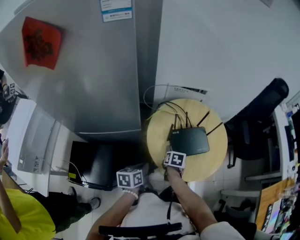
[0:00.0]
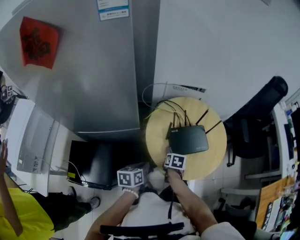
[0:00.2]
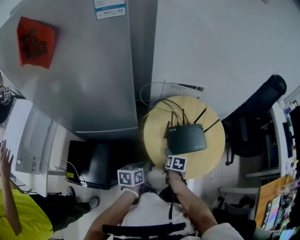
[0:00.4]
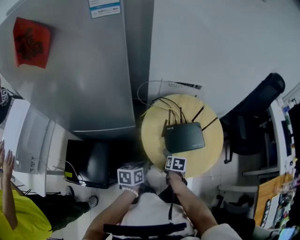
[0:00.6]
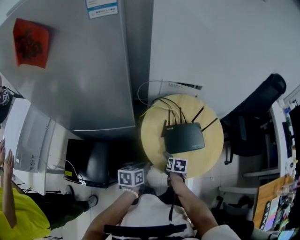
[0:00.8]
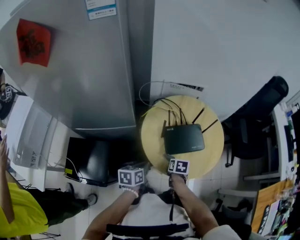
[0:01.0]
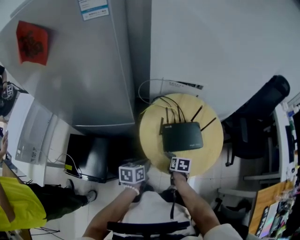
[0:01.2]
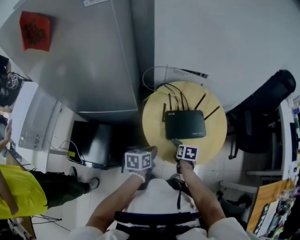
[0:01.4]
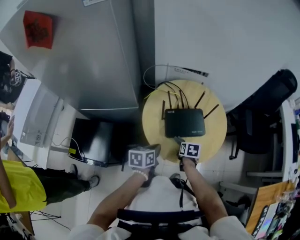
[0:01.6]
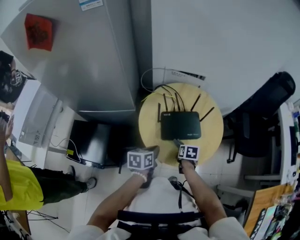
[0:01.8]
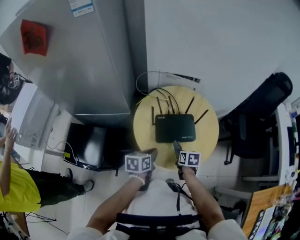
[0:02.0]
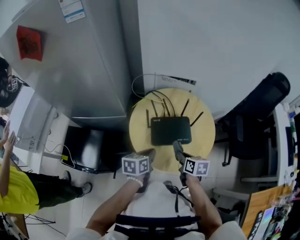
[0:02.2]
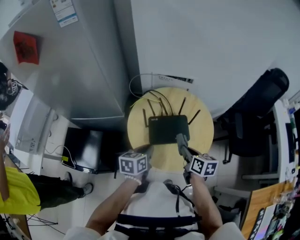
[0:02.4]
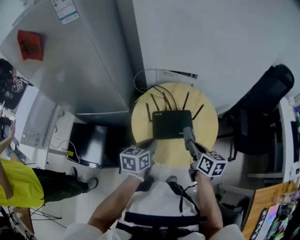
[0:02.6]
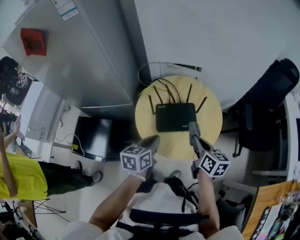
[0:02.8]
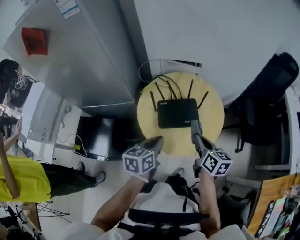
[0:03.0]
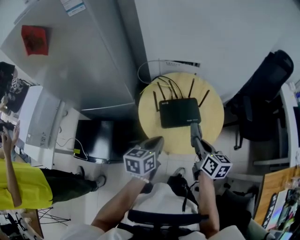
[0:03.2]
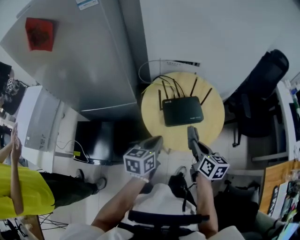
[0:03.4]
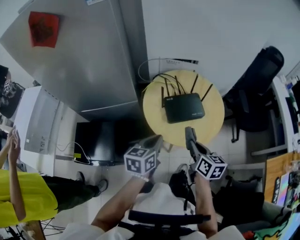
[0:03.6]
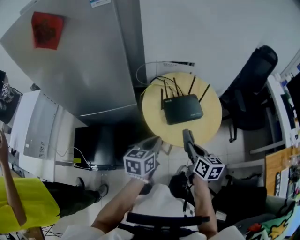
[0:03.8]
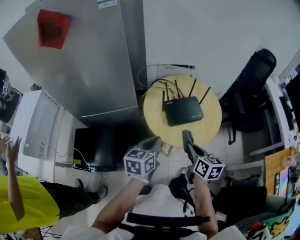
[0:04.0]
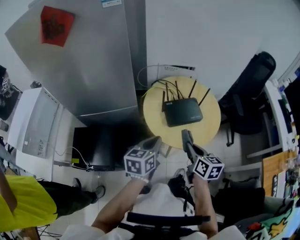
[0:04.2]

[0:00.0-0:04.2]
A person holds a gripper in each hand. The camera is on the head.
0:00.0 to 0:01.4: Both grippers move to the right, approximately 10 cm.
0:01.4 to 0:02.8: The left gripper shifts some 15 cm upward and to the right, while the right gripper travels upward and to the right by about 25 cm, and tilts its fingers approximately 40 degrees upward.
0:02.8 to 0:04.2: The right gripper travels backward and to the left by about 20 cm; the left gripper heads to the left and backward, covering approximately 15 cm.

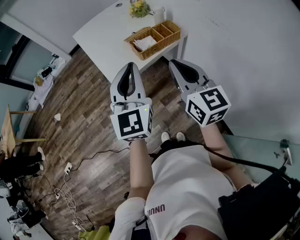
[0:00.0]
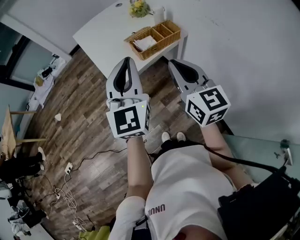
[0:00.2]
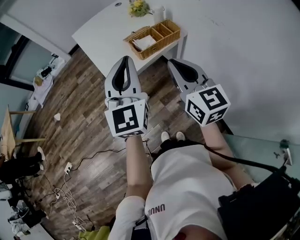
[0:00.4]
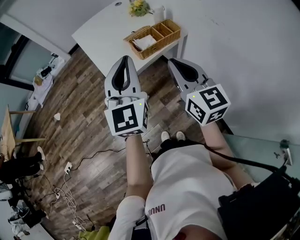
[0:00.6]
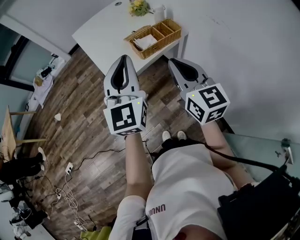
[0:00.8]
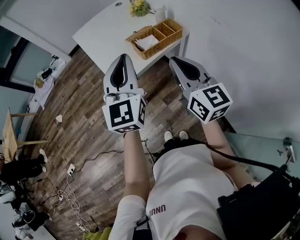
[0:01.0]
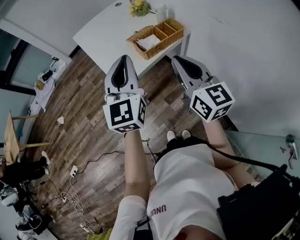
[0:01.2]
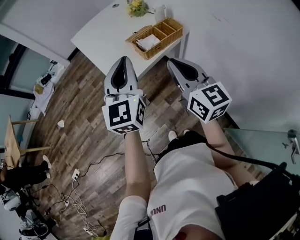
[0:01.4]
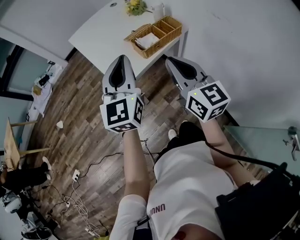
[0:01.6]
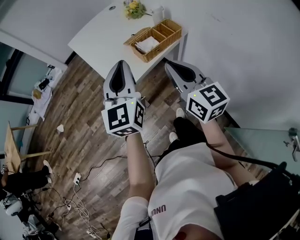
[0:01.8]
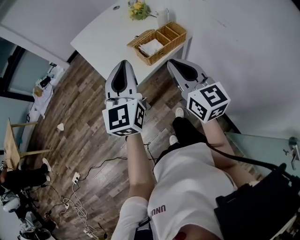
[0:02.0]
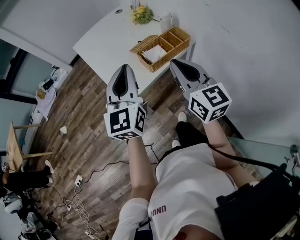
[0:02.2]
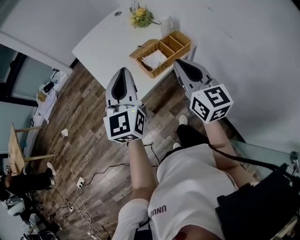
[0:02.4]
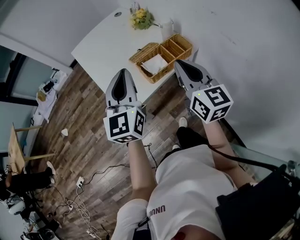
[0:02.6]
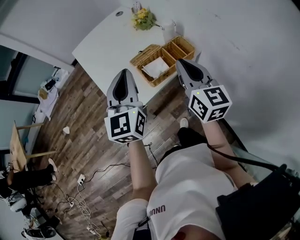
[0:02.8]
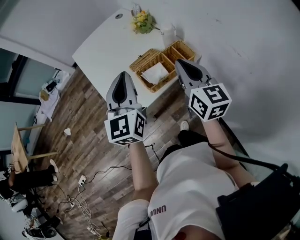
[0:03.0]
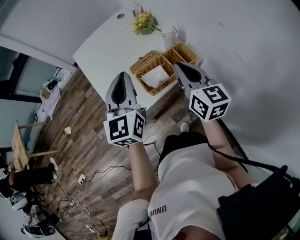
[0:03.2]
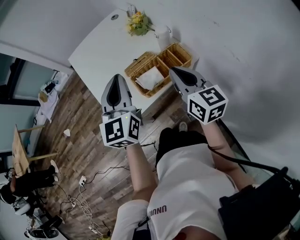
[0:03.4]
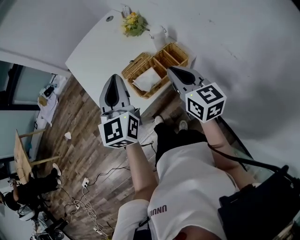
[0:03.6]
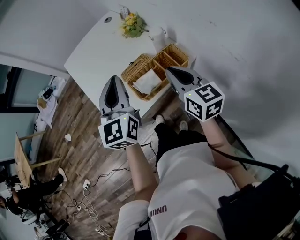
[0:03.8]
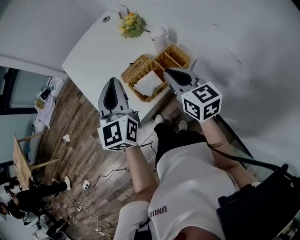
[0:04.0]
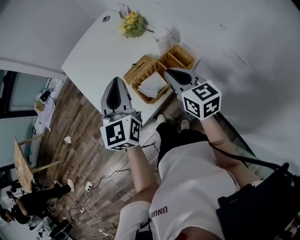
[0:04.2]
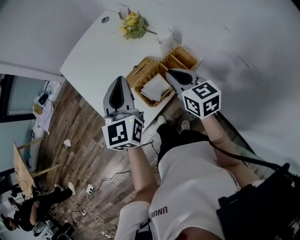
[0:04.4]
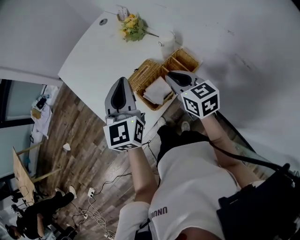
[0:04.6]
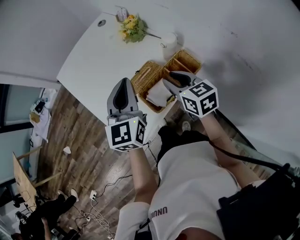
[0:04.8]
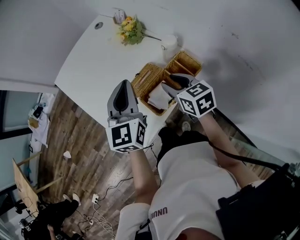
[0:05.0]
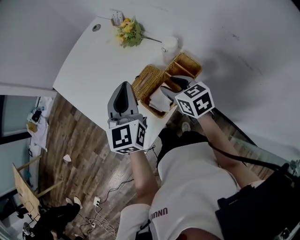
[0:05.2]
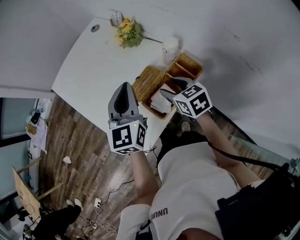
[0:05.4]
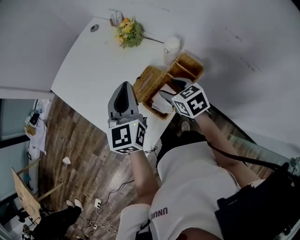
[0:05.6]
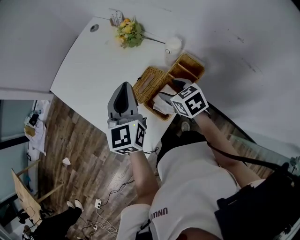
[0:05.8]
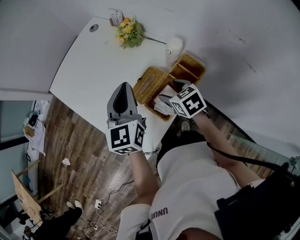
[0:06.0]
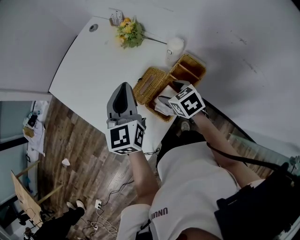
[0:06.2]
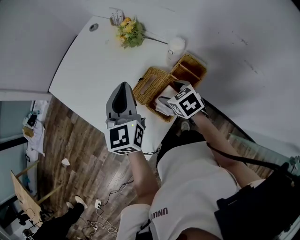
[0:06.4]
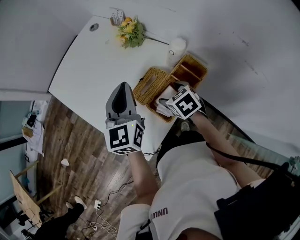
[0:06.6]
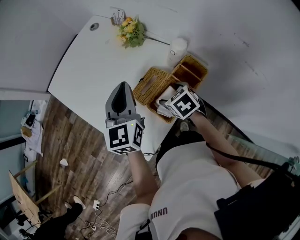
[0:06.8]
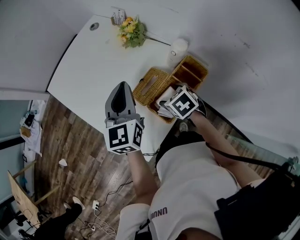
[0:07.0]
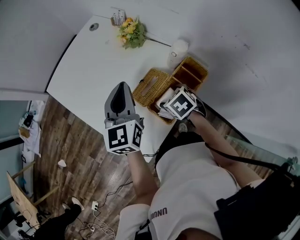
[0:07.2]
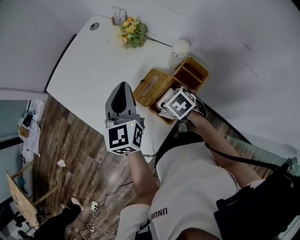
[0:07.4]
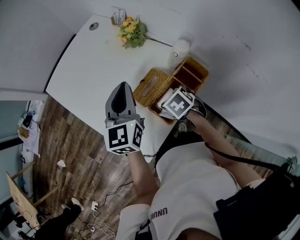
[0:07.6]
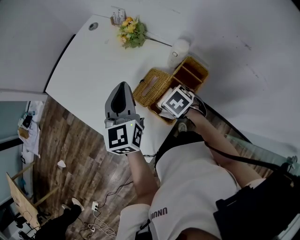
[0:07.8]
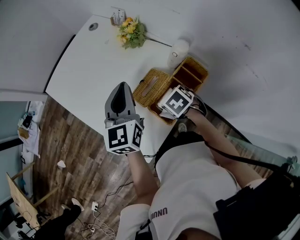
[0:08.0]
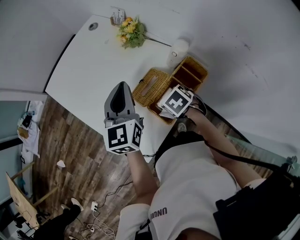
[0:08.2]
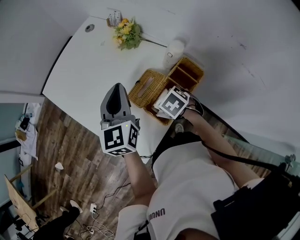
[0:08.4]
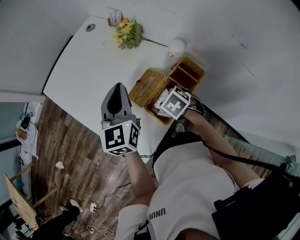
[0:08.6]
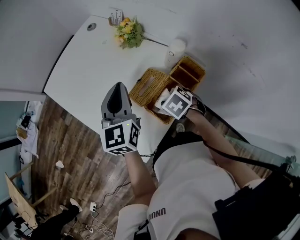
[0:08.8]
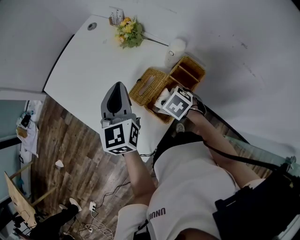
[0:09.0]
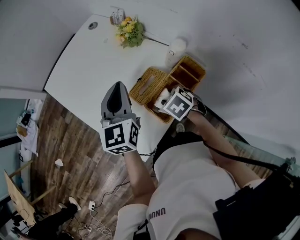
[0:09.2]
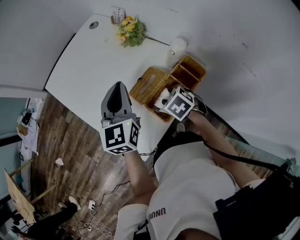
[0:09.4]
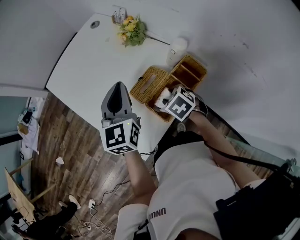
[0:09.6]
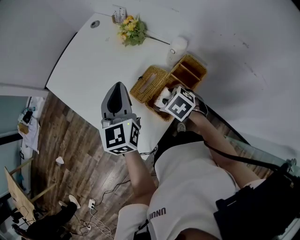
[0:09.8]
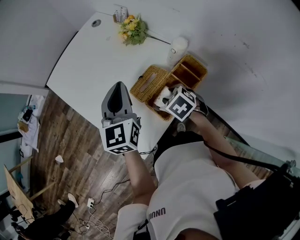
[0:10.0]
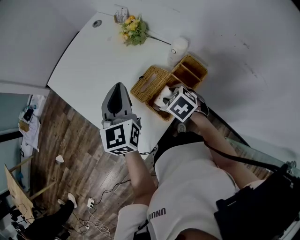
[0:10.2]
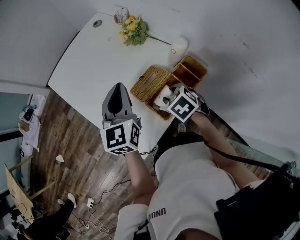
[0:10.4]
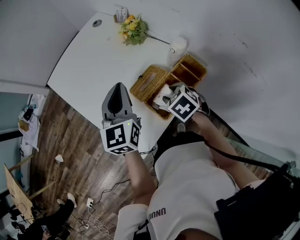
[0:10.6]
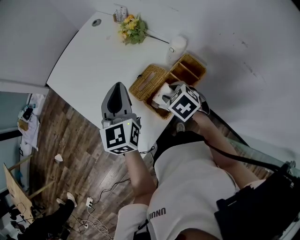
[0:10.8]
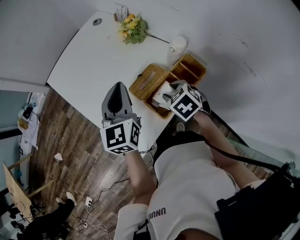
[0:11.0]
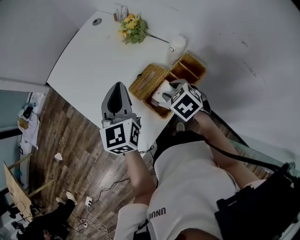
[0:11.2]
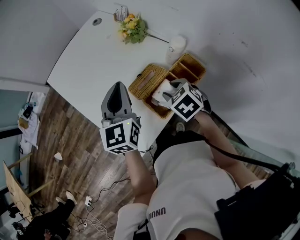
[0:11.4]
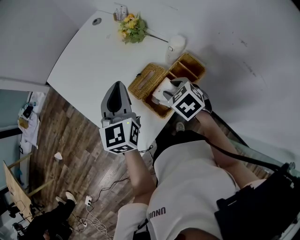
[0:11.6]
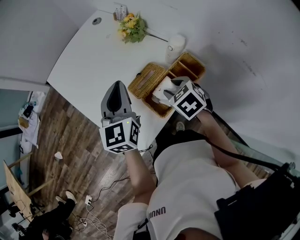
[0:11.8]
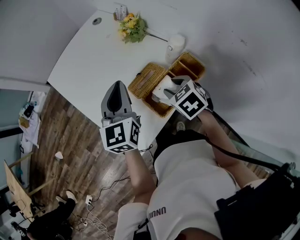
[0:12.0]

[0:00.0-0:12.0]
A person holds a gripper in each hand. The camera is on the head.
0:00.0 to 0:01.6: The left gripper moves forward, about 5 cm.
0:01.6 to 0:03.0: The left gripper shifts some 15 cm forward; the right gripper is displaced forward and to the right by about 20 cm.
0:03.0 to 0:04.4: The right gripper shifts some 10 cm downward and forward. The left gripper goes approximately 10 cm forward.
0:04.4 to 0:06.0: The left gripper shifts some 10 cm forward. Meanwhile the right gripper goes approximately 10 cm downward, changes its angle by roughly 30 degrees, and opens.
0:06.0 to 0:07.6: The right gripper moves downward, approximately 5 cm, and swivels roughly 30 degrees.
0:07.6 to 0:09.0: The right gripper closes.
0:09.0 to 0:10.4: The grippers make only small movements.
0:10.4 to 0:12.0: There are only small adjustments of the grippers.

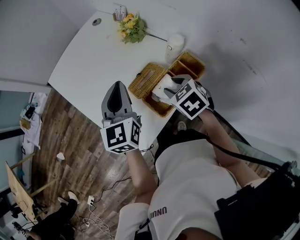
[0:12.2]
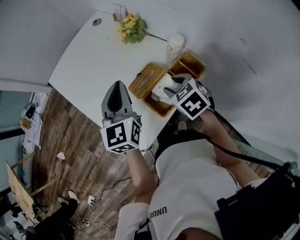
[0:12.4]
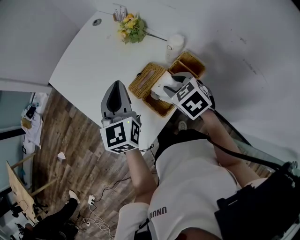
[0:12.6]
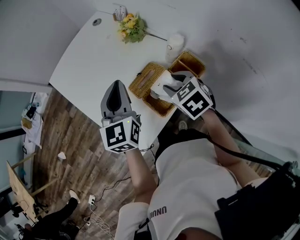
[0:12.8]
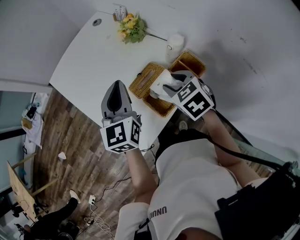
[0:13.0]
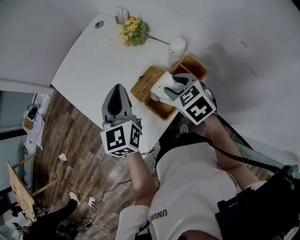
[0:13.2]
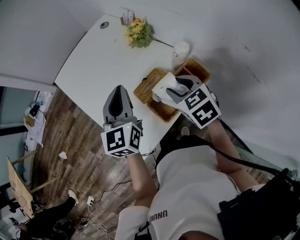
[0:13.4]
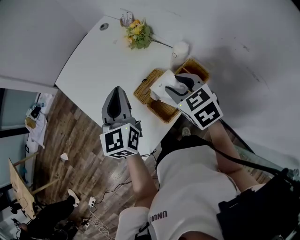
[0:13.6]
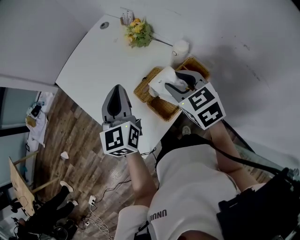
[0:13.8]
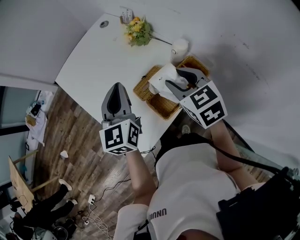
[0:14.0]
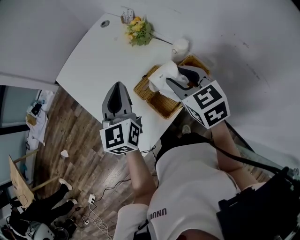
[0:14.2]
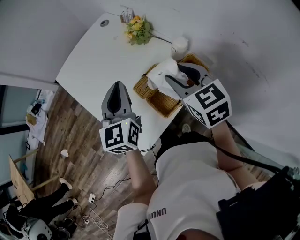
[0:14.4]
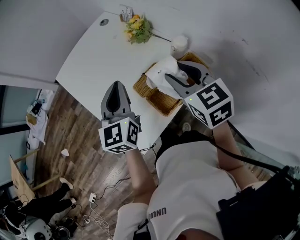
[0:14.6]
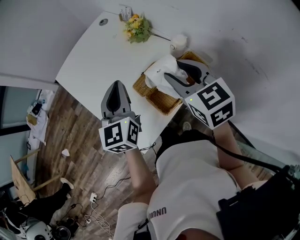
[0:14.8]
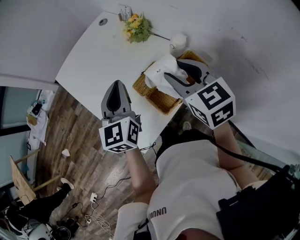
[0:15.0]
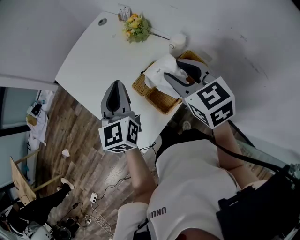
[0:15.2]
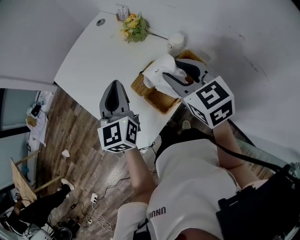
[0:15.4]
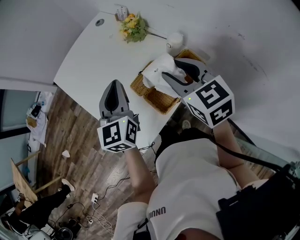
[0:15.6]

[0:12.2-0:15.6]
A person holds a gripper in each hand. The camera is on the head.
0:12.2 to 0:13.8: The right gripper heads upward, covering about 10 cm.
0:13.8 to 0:15.6: The right gripper goes about 5 cm upward.

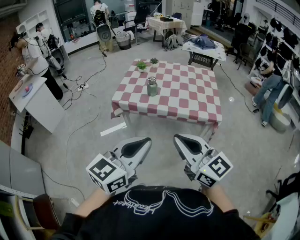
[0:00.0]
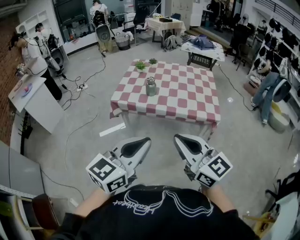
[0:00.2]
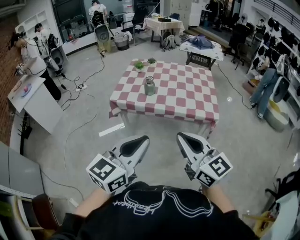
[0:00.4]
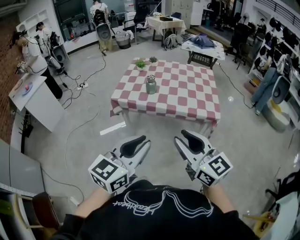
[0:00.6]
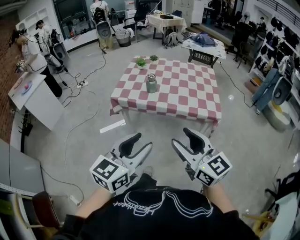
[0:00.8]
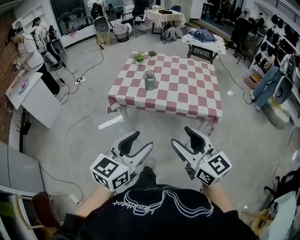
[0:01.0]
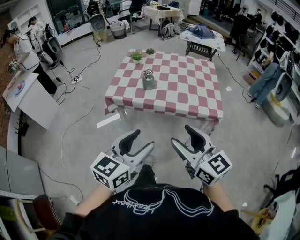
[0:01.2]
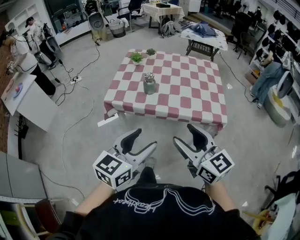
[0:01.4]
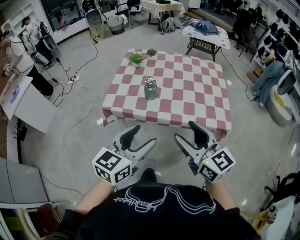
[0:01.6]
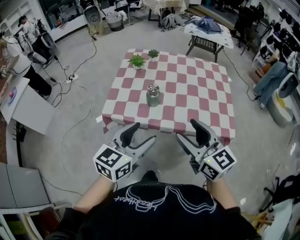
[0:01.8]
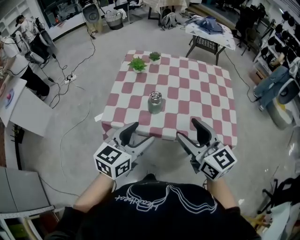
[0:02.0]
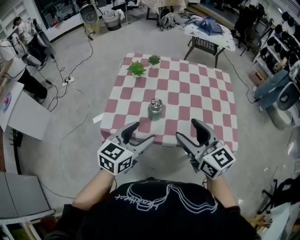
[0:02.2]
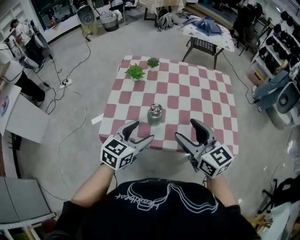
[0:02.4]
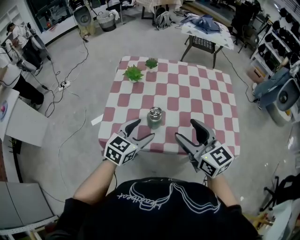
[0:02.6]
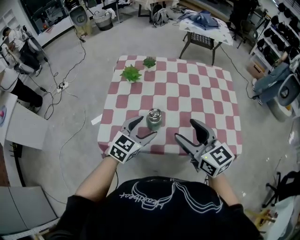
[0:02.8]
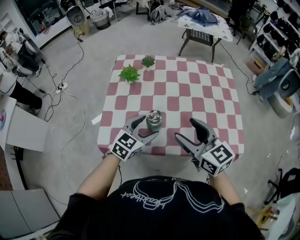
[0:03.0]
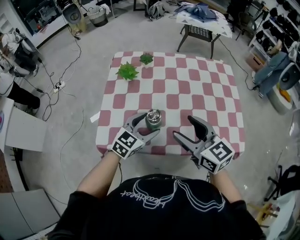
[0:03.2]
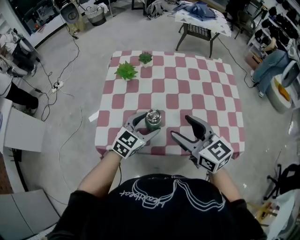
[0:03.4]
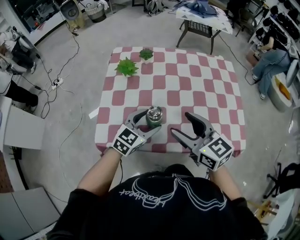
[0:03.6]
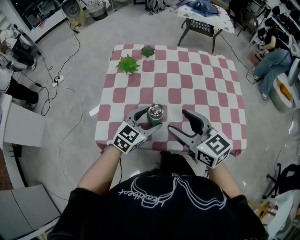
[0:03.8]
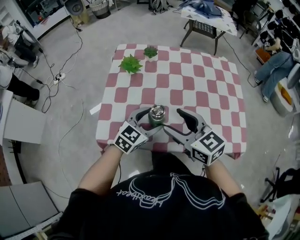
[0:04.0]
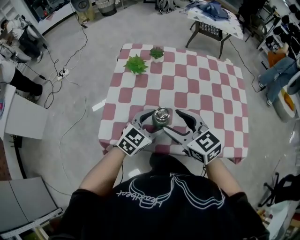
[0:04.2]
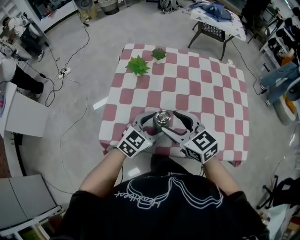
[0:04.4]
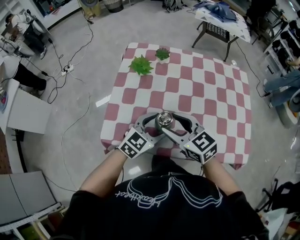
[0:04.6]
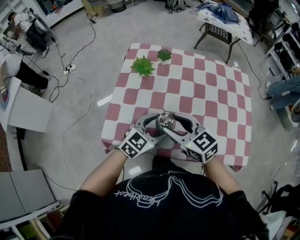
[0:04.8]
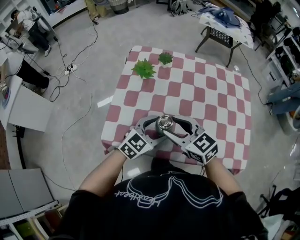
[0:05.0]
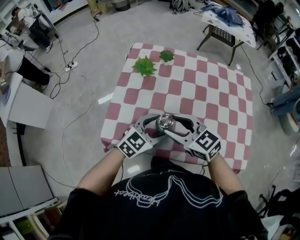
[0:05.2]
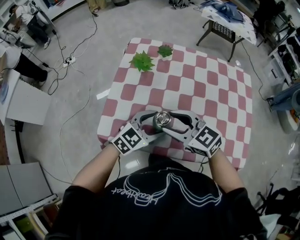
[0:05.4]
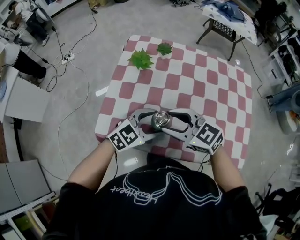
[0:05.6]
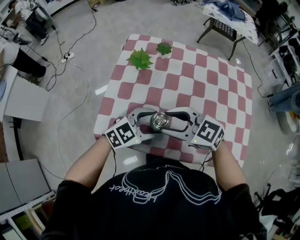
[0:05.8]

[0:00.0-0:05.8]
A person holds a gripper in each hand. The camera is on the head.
0:00.0 to 0:01.4: Both grippers travel together forward and downward, some 15 cm. The left gripper opens up. Meanwhile the right gripper opens its fingers.
0:01.4 to 0:02.8: The left gripper goes roughly 35 cm forward and downward, and swivels about 20 degrees. The right gripper travels forward by roughly 30 cm.
0:02.8 to 0:04.4: The right gripper goes approximately 10 cm to the left, downward and forward.
0:04.4 to 0:05.8: The right gripper swivels roughly 30 degrees.
